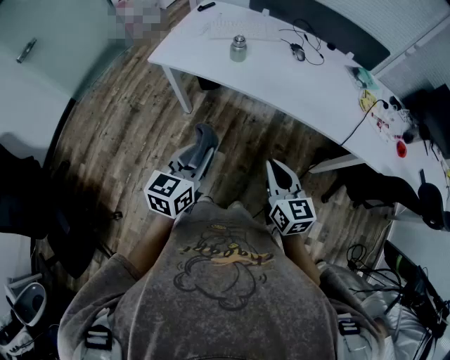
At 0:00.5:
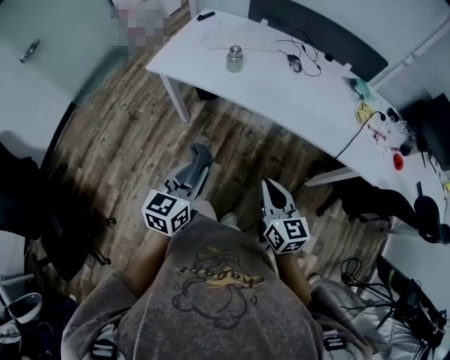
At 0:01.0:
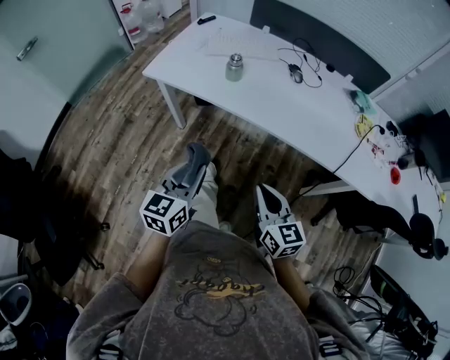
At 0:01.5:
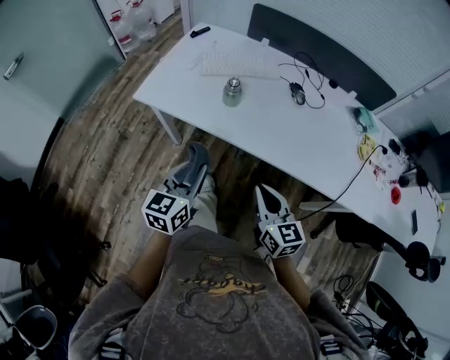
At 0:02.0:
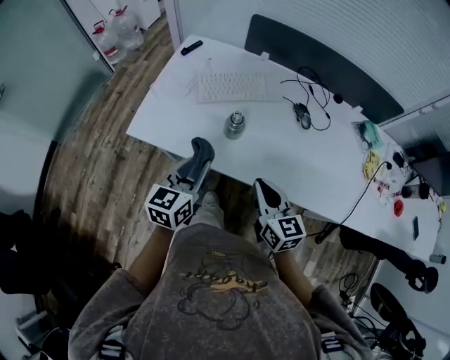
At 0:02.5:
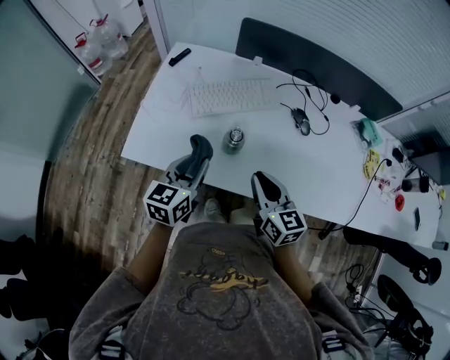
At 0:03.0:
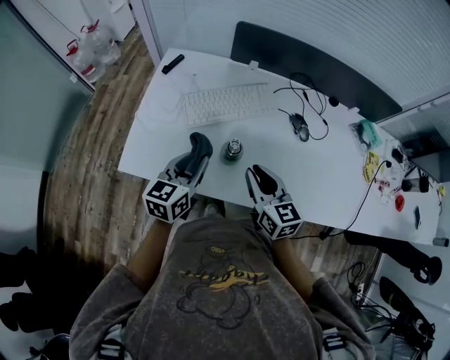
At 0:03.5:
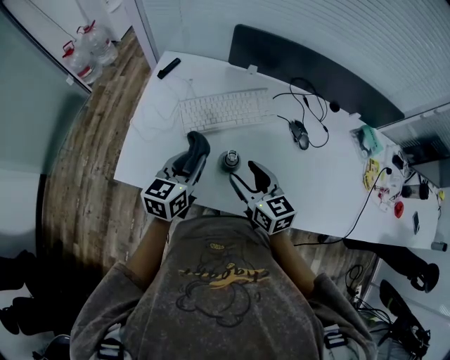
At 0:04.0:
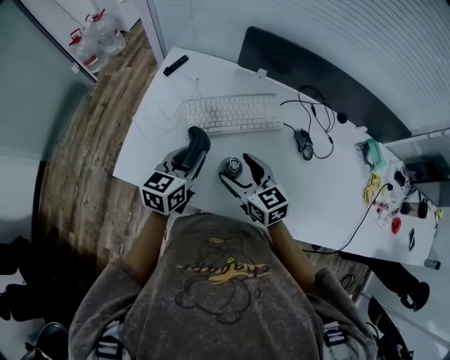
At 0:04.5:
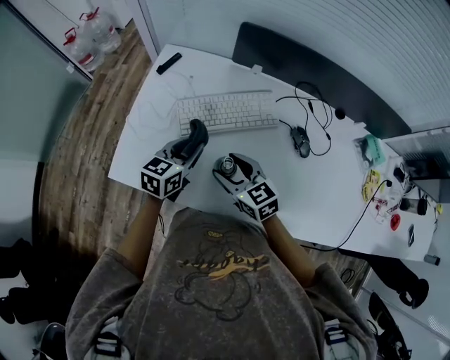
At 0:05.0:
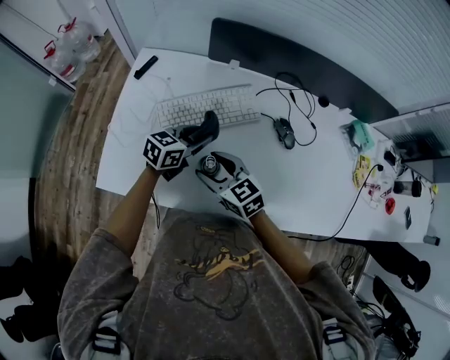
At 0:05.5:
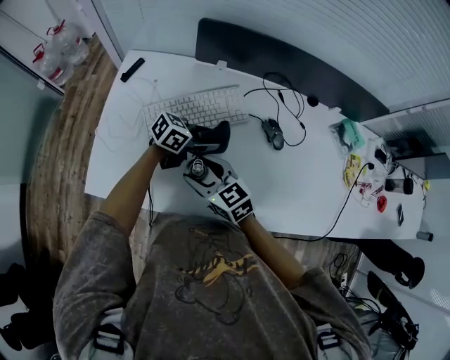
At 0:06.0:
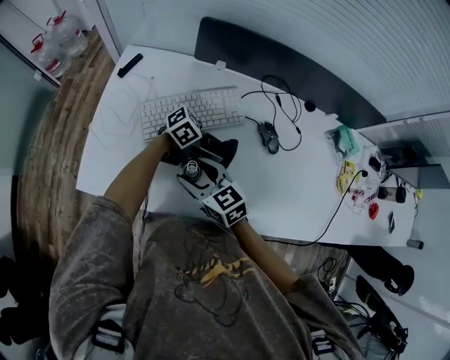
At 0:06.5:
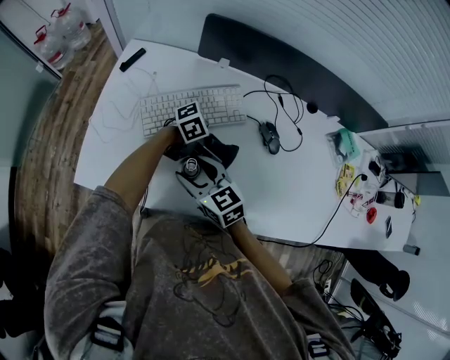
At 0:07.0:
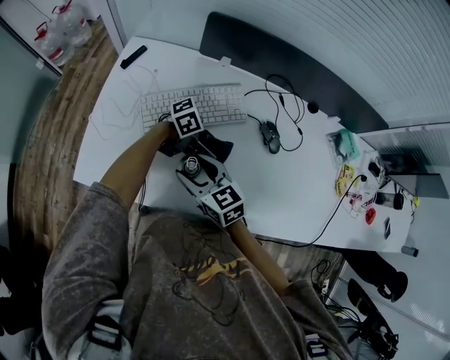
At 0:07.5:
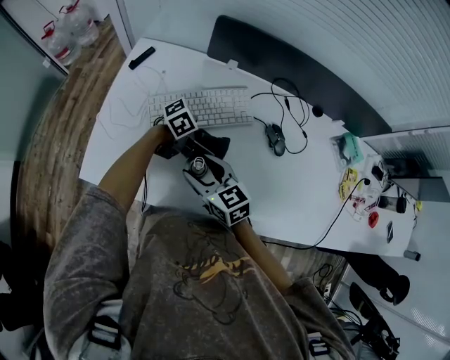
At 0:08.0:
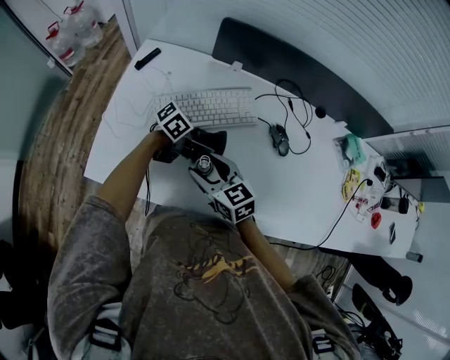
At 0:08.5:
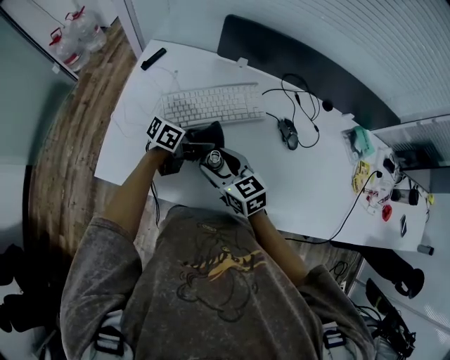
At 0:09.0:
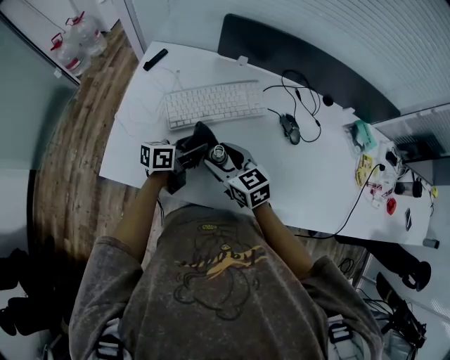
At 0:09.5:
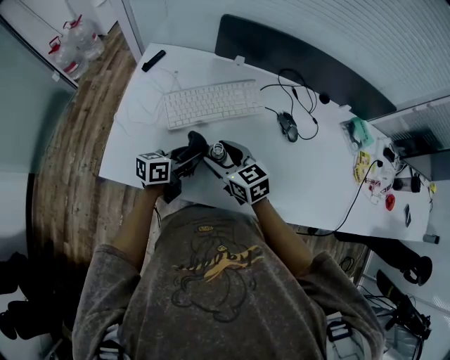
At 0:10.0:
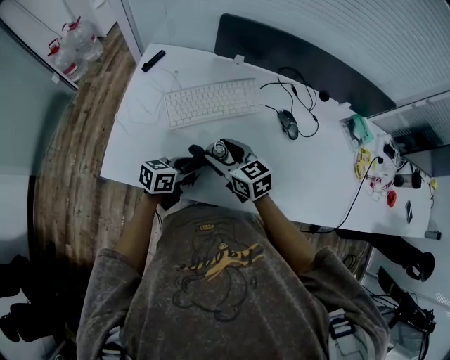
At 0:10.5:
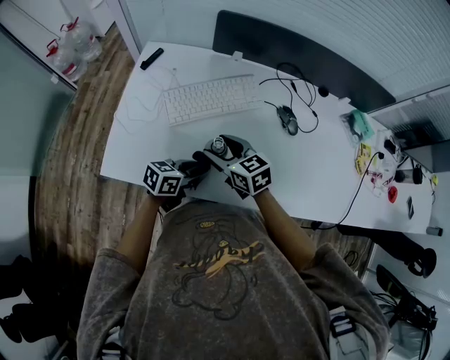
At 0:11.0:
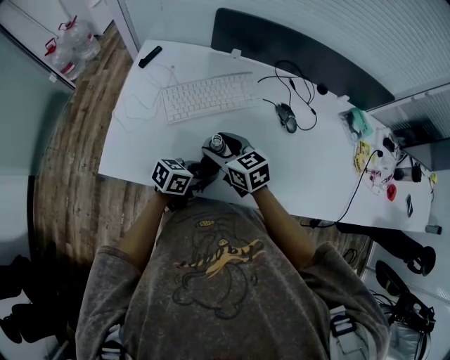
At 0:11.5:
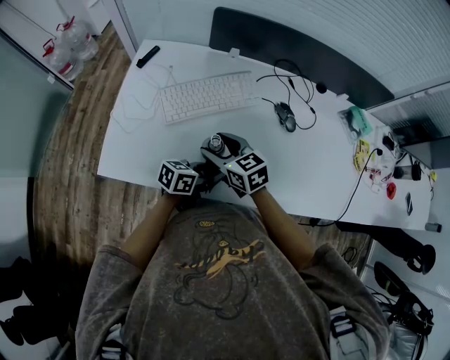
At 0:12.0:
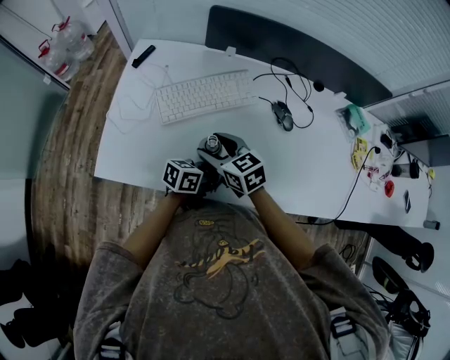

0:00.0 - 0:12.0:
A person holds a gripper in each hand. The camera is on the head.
0:00.0 - 0:02.0: The two grippers go roughly 35 cm forward.
0:02.0 - 0:04.0: The right gripper goes approximately 20 cm forward and to the left, and opens its fingers; the left gripper moves forward, some 20 cm.
0:04.0 - 0:06.0: The left gripper ends up about 20 cm from where it was, and rotates about 80 degrees.
0:06.0 - 0:08.0: The left gripper ends up about 5 cm from where it was.
0:08.0 - 0:10.0: The left gripper changes place by some 10 cm, and rotates some 40 degrees.
0:10.0 - 0:12.0: The left gripper heads to the right, covering approximately 10 cm.

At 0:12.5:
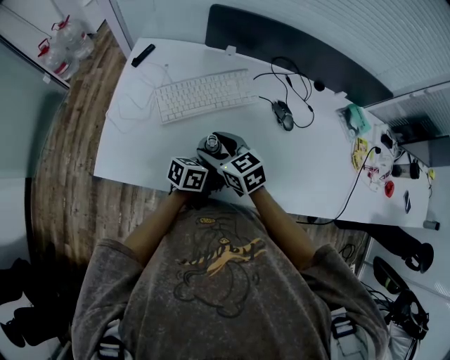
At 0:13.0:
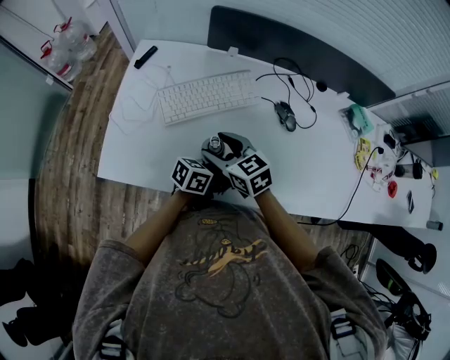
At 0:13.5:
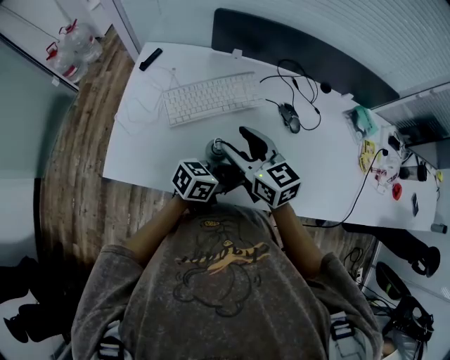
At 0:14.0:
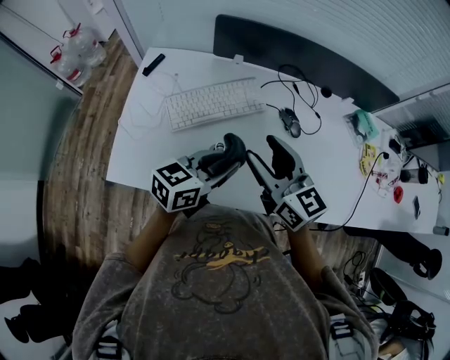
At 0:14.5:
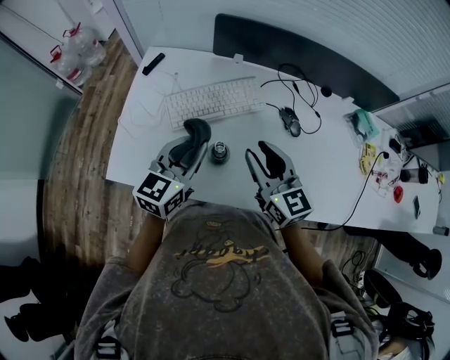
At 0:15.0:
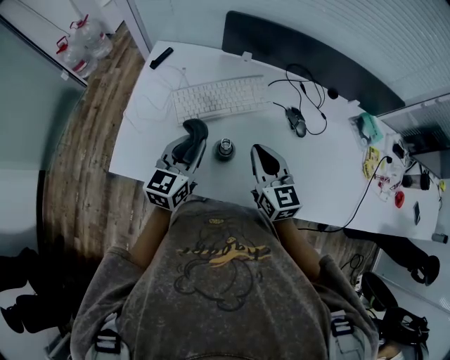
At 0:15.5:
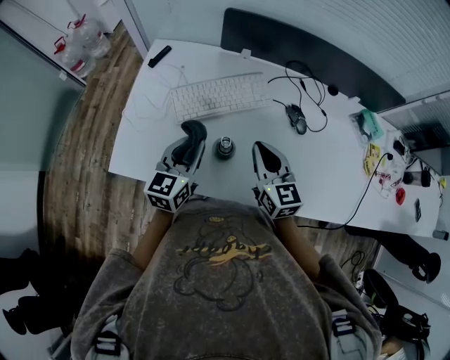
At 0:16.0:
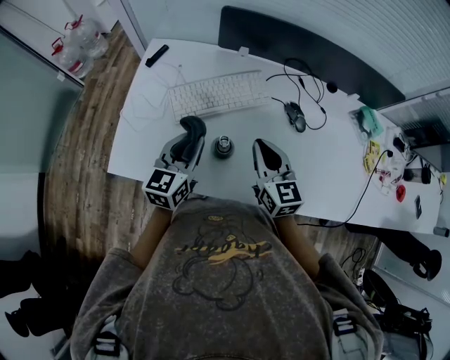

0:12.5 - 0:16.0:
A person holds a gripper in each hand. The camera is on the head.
0:12.5 - 0:14.5: The grippers both shift upward by roughly 15 cm. The right gripper changes its angle by roughly 30 degrees, and closes; the left gripper turns by some 50 degrees.
0:14.5 - 0:16.0: The left gripper ends up roughly 5 cm from where it was, while the right gripper travels downward by roughly 5 cm, and closes.

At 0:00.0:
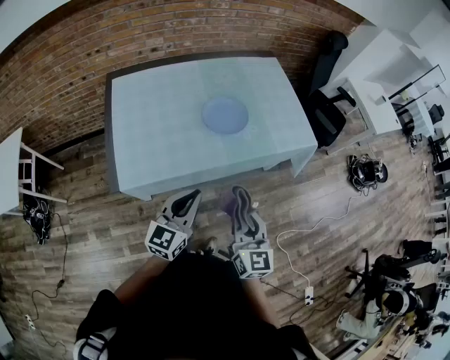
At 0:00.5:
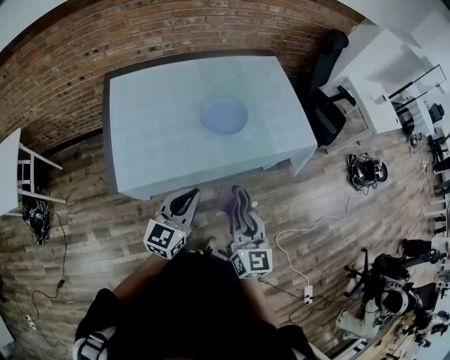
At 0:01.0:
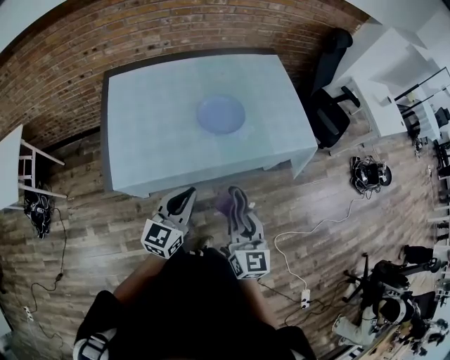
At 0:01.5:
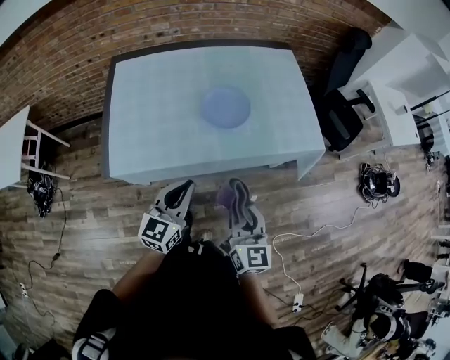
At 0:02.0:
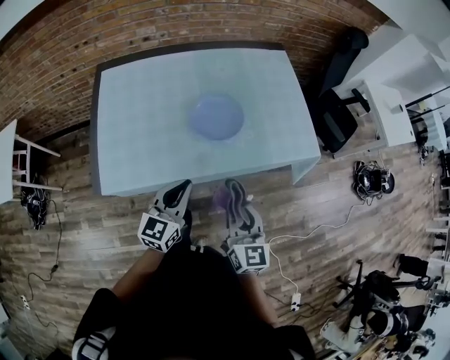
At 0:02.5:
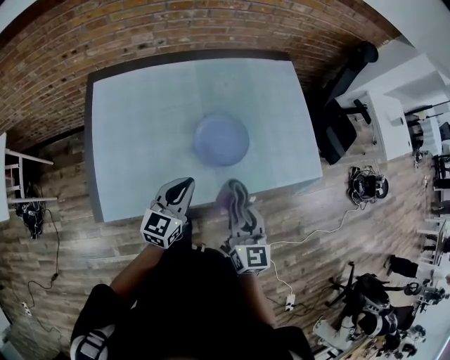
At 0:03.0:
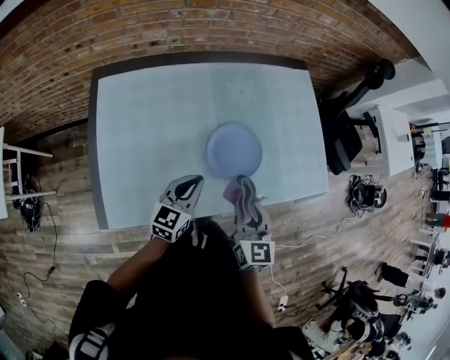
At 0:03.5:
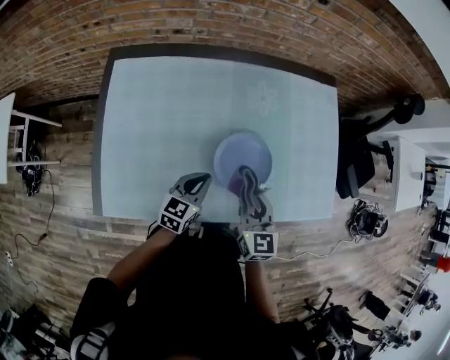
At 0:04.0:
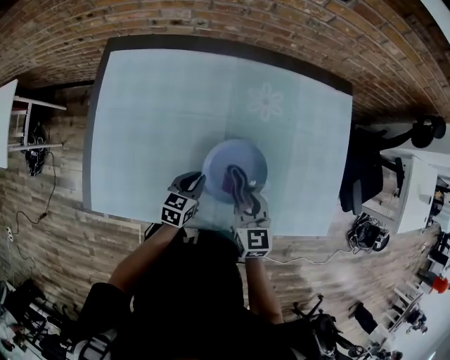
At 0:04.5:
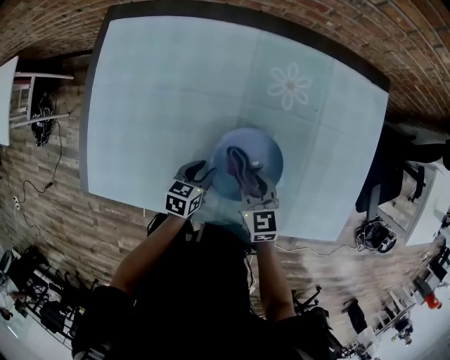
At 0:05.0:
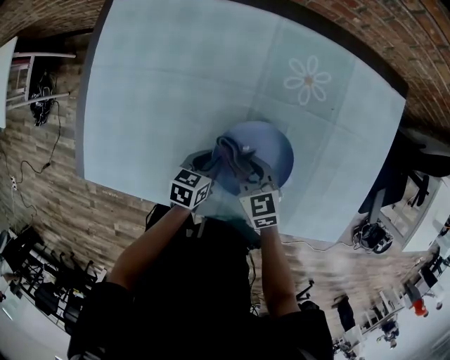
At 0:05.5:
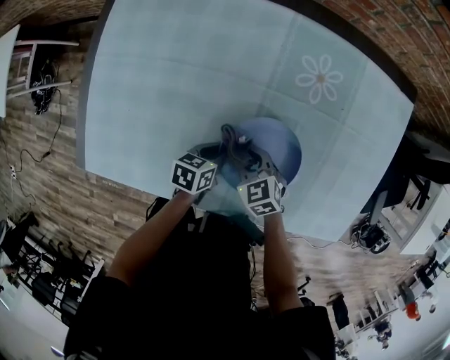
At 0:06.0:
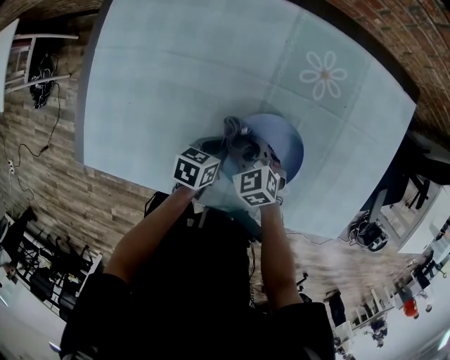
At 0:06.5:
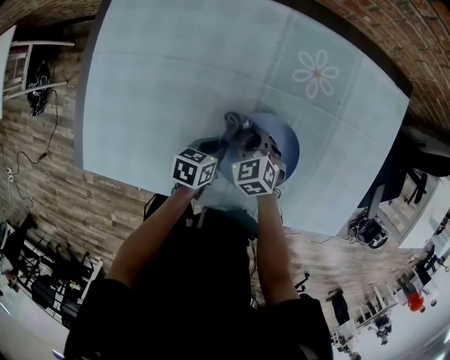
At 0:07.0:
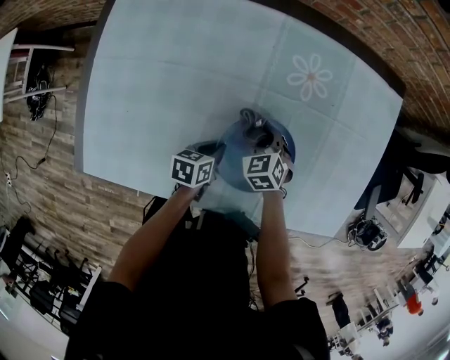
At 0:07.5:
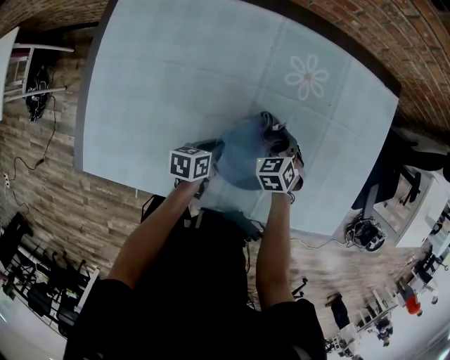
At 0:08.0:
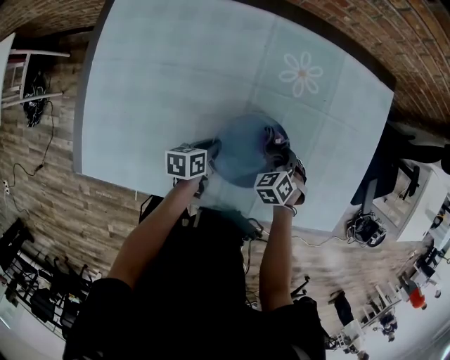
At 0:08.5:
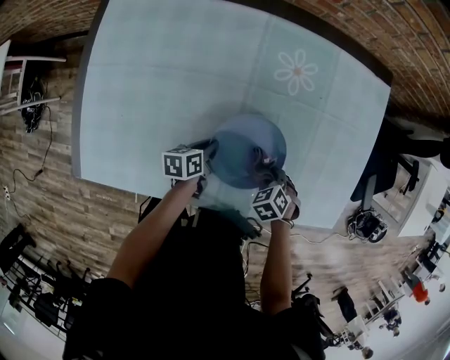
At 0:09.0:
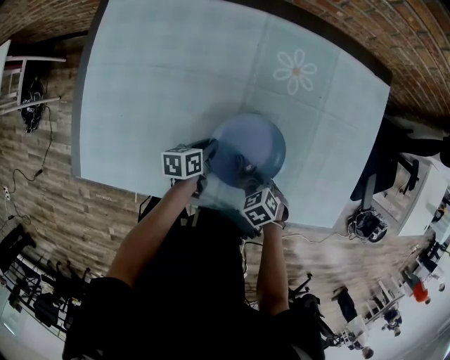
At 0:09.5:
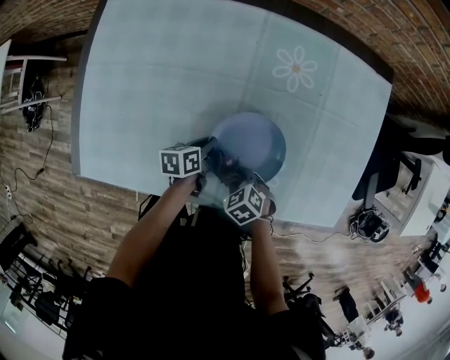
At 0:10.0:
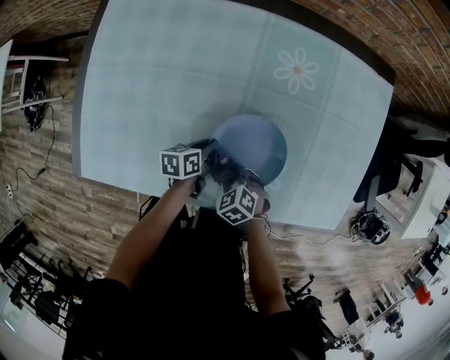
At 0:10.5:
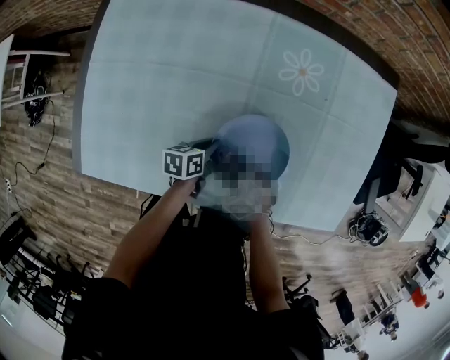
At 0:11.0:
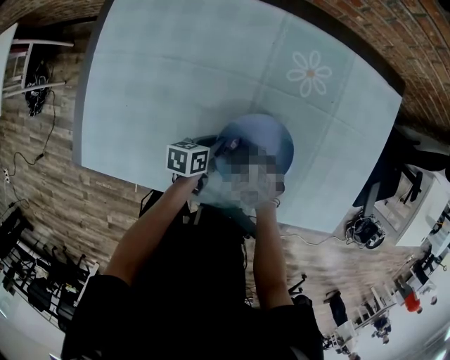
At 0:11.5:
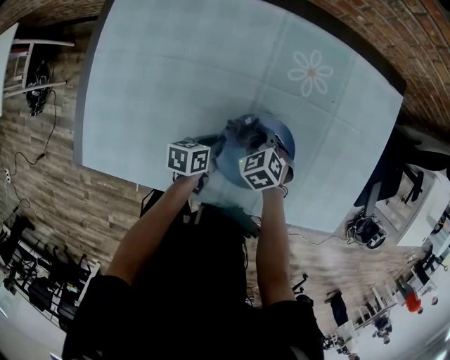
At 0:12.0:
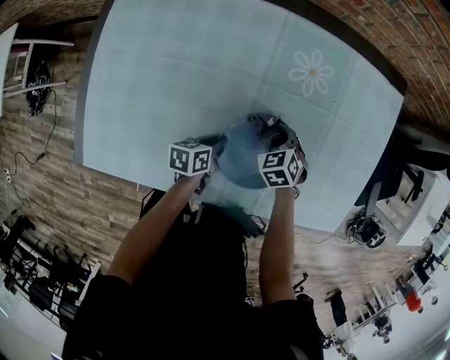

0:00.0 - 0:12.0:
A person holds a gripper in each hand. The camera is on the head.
0:00.0 - 0:02.0: The two grippers go about 15 cm forward.
0:02.0 - 0:04.0: The left gripper shifts some 40 cm forward and downward, and changes its angle by approximately 30 degrees. Meanwhile the right gripper travels forward by roughly 35 cm, and rotates approximately 30 degrees.
0:04.0 - 0:06.0: The right gripper moves downward, approximately 20 cm, and changes its angle by approximately 40 degrees. The left gripper shifts about 10 cm downward, swivels some 20 degrees, and opens and closes again.
0:06.0 - 0:08.0: The right gripper changes place by approximately 15 cm, and changes its angle by approximately 30 degrees.
0:08.0 - 0:10.0: The right gripper moves about 20 cm, and changes its angle by about 30 degrees.
0:10.0 - 0:12.0: The right gripper moves forward and to the right, approximately 15 cm.
